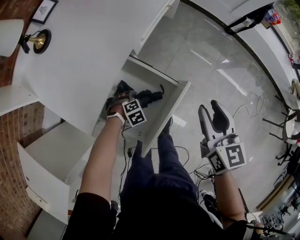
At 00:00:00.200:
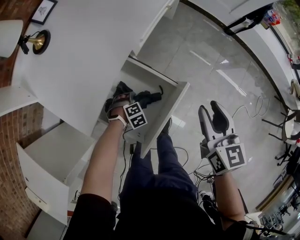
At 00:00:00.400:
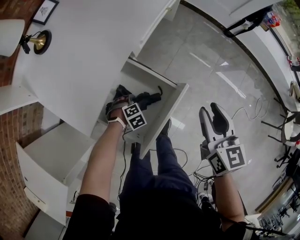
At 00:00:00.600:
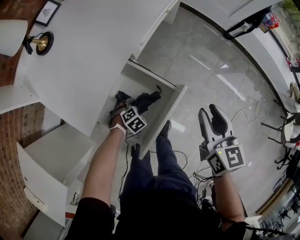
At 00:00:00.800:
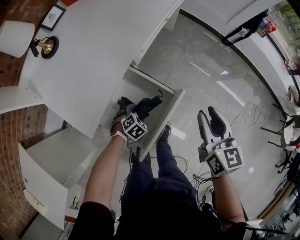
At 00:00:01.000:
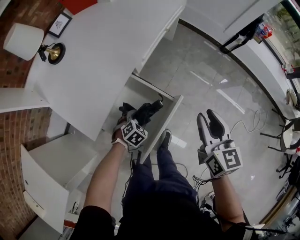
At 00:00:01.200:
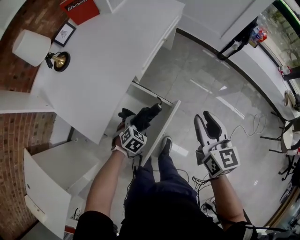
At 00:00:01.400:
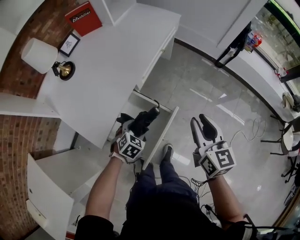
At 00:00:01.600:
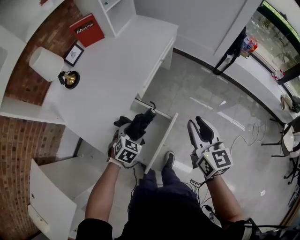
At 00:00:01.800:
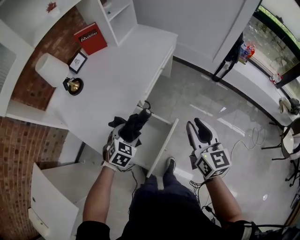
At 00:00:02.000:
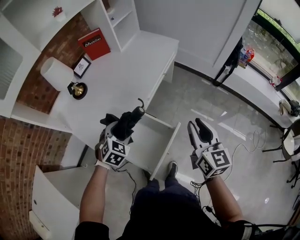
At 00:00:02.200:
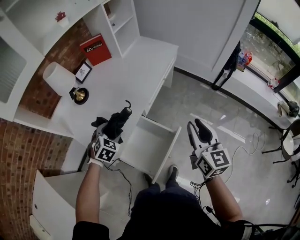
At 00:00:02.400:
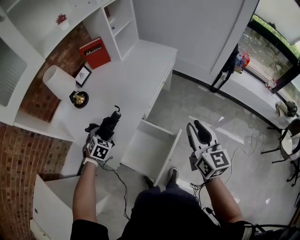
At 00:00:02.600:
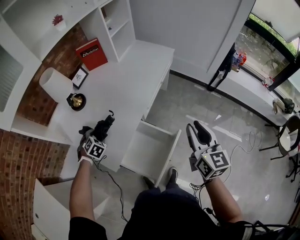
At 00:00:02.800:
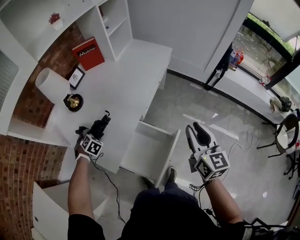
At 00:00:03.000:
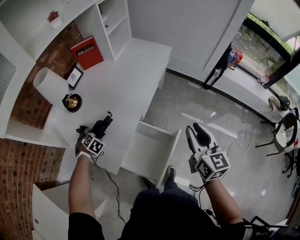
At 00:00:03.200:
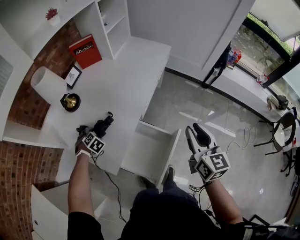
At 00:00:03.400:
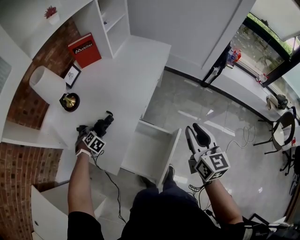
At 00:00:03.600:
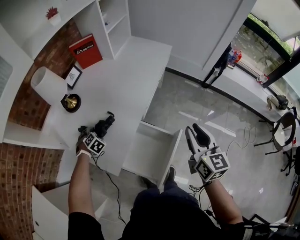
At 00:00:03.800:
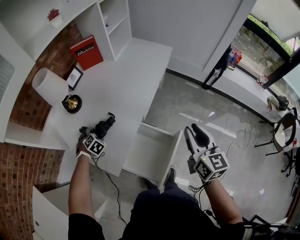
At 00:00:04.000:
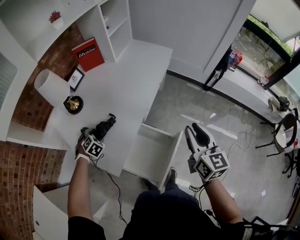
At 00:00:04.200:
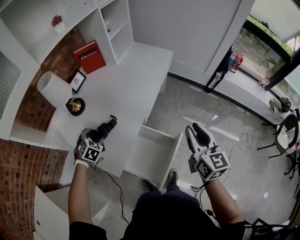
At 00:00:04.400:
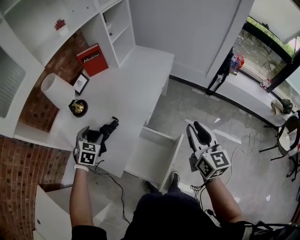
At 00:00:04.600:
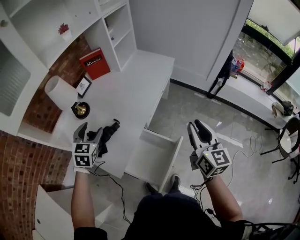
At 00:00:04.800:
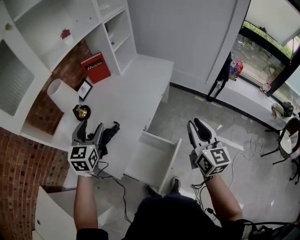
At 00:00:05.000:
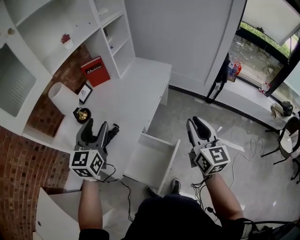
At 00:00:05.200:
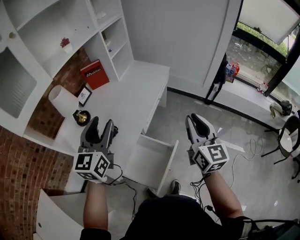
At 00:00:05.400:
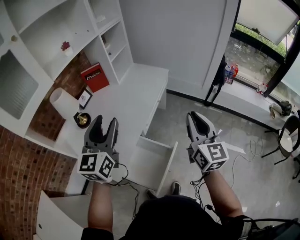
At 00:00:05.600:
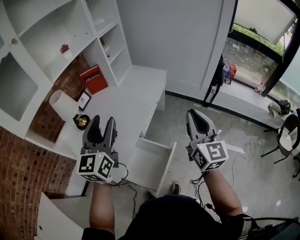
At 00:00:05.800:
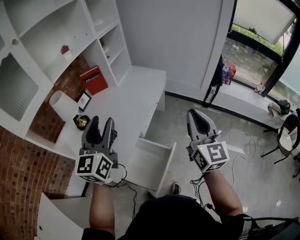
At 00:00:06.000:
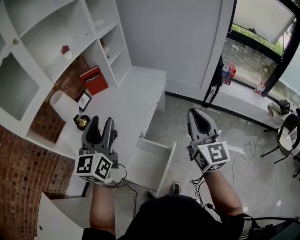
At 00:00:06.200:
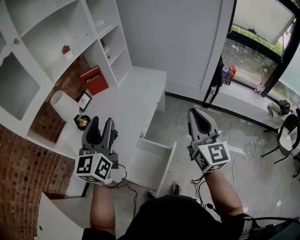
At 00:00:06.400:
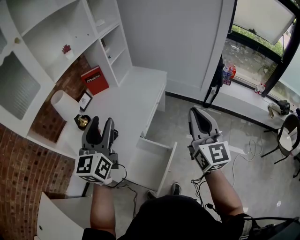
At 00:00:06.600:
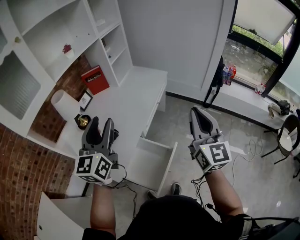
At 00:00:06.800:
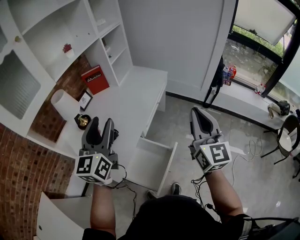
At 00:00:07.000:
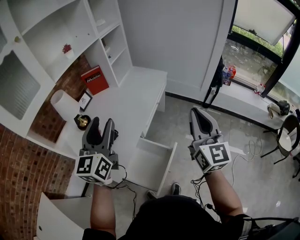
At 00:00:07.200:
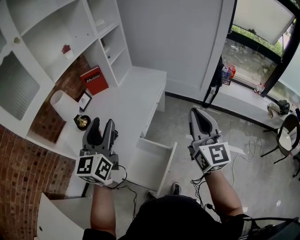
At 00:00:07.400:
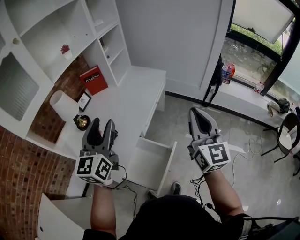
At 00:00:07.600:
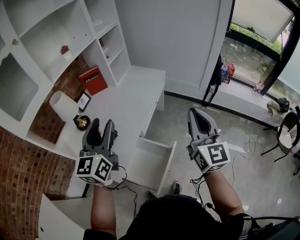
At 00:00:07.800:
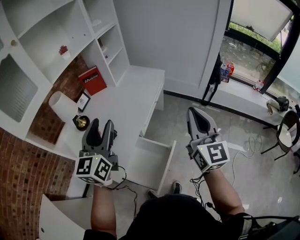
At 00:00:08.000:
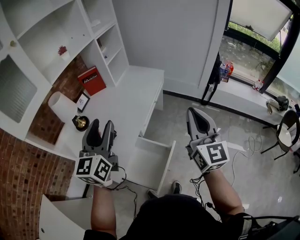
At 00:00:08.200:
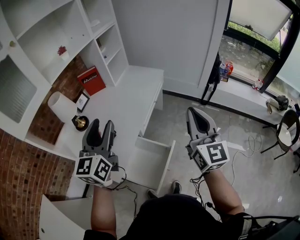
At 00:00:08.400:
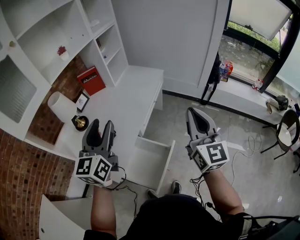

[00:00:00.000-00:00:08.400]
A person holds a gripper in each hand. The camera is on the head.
00:00:00.000 to 00:00:01.400: The right gripper shifts roughly 10 cm upward. Meanwhile the left gripper heads upward, covering approximately 20 cm, and swivels some 40 degrees.
00:00:01.400 to 00:00:02.800: The right gripper heads upward and to the left, covering roughly 10 cm. The left gripper travels to the left and forward by about 35 cm, and turns by some 20 degrees.
00:00:02.800 to 00:00:04.200: The left gripper is displaced upward by roughly 5 cm.
00:00:04.200 to 00:00:05.600: The left gripper heads upward and to the right, covering roughly 40 cm, and points its fingers about 60 degrees further upward. Meanwhile the right gripper heads upward, covering approximately 15 cm.
00:00:05.600 to 00:00:08.400: The grippers stay close to where they were, moving slightly.

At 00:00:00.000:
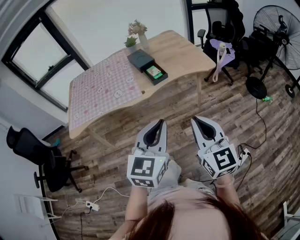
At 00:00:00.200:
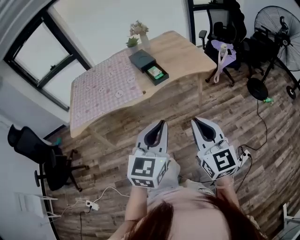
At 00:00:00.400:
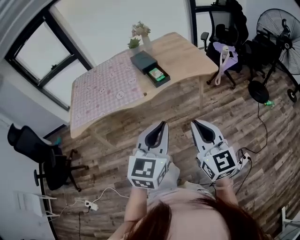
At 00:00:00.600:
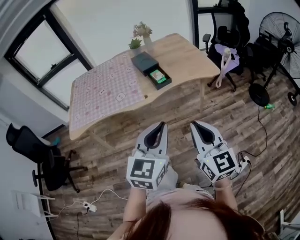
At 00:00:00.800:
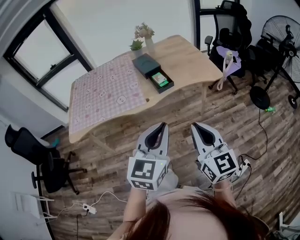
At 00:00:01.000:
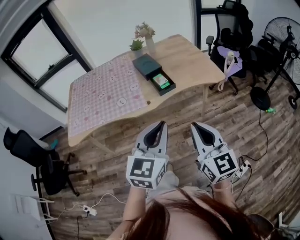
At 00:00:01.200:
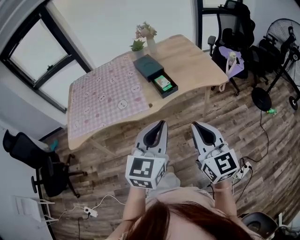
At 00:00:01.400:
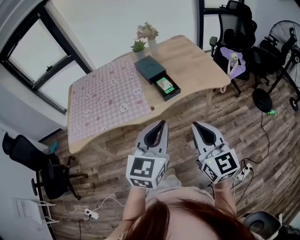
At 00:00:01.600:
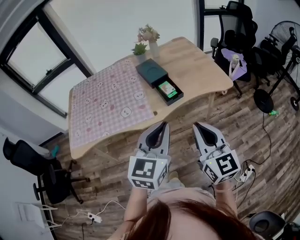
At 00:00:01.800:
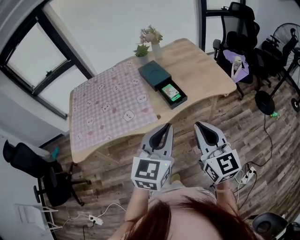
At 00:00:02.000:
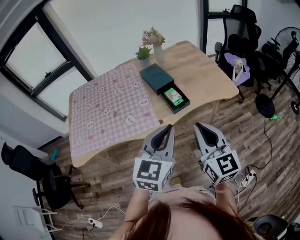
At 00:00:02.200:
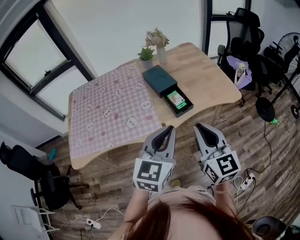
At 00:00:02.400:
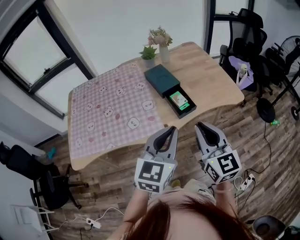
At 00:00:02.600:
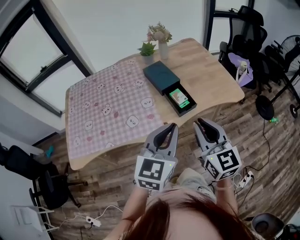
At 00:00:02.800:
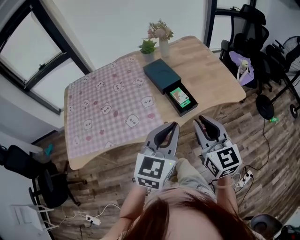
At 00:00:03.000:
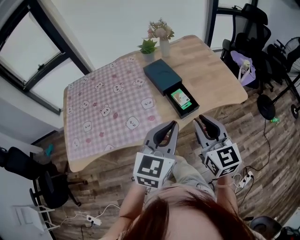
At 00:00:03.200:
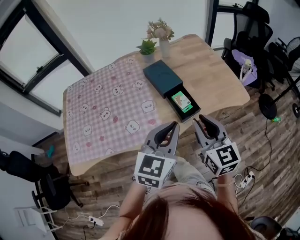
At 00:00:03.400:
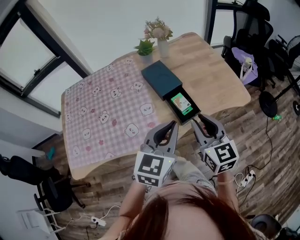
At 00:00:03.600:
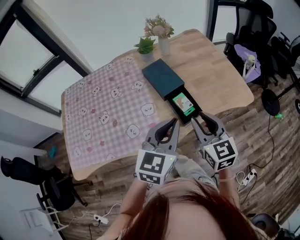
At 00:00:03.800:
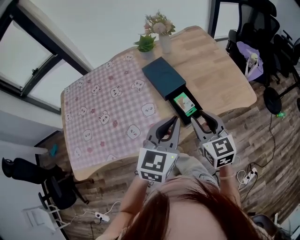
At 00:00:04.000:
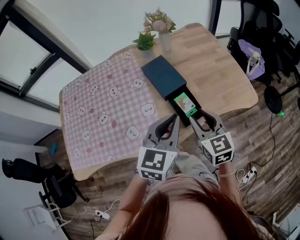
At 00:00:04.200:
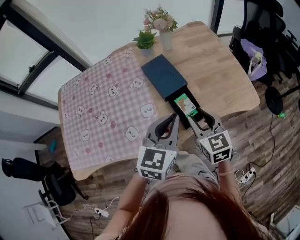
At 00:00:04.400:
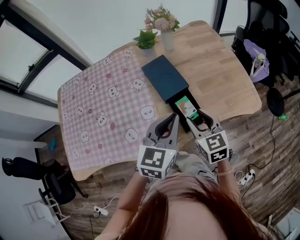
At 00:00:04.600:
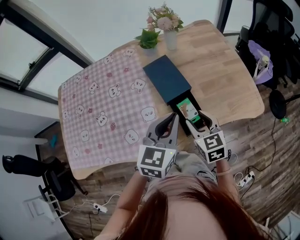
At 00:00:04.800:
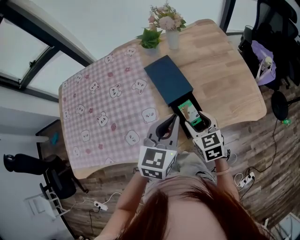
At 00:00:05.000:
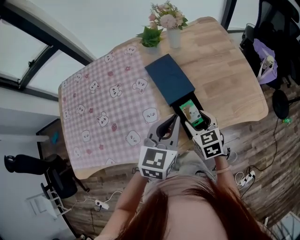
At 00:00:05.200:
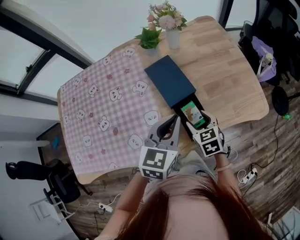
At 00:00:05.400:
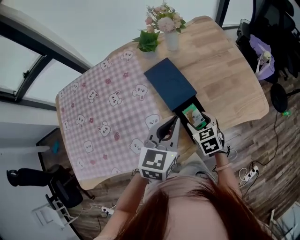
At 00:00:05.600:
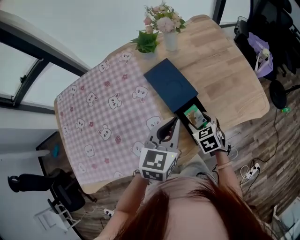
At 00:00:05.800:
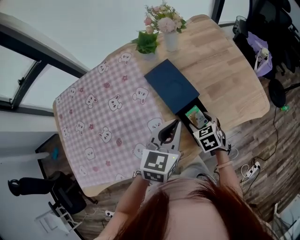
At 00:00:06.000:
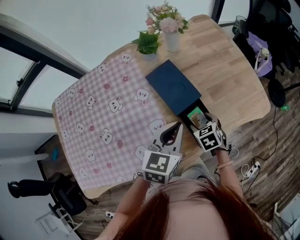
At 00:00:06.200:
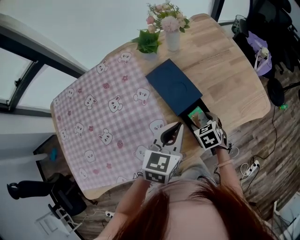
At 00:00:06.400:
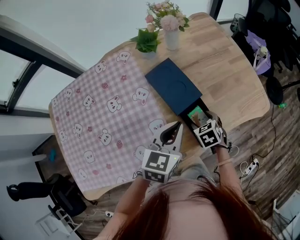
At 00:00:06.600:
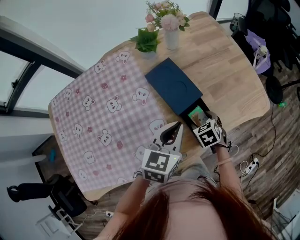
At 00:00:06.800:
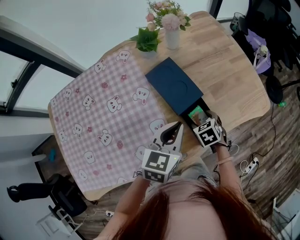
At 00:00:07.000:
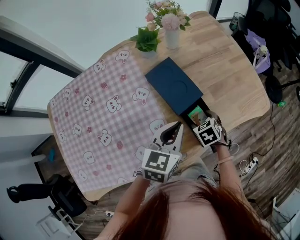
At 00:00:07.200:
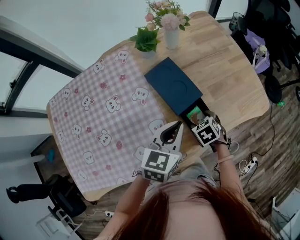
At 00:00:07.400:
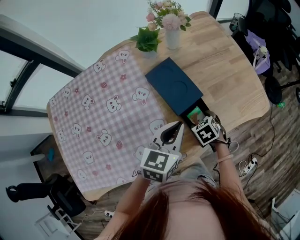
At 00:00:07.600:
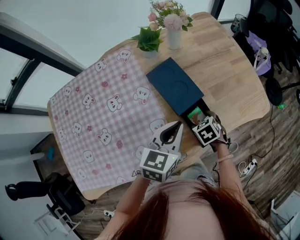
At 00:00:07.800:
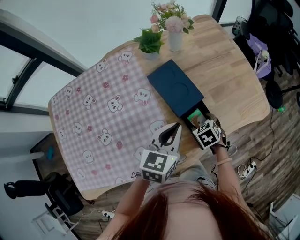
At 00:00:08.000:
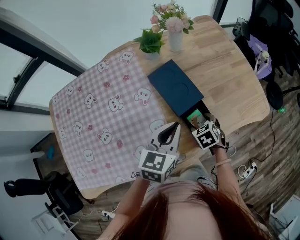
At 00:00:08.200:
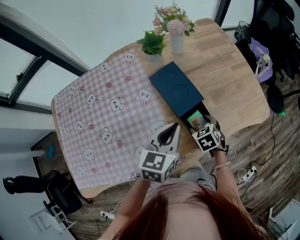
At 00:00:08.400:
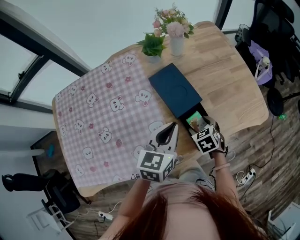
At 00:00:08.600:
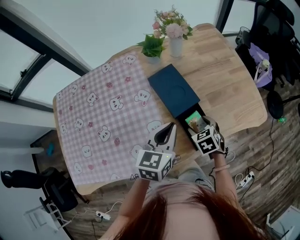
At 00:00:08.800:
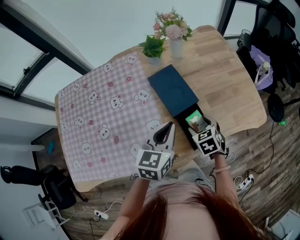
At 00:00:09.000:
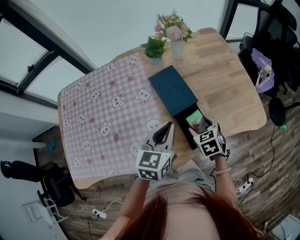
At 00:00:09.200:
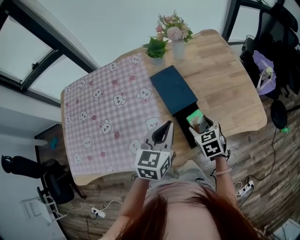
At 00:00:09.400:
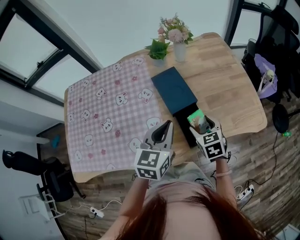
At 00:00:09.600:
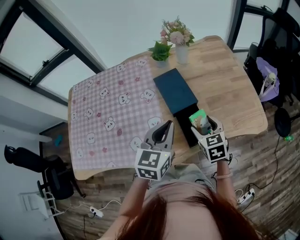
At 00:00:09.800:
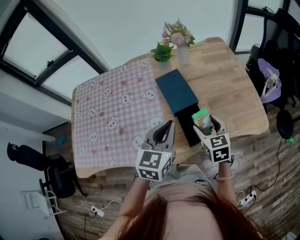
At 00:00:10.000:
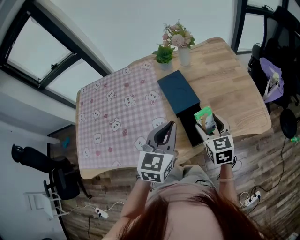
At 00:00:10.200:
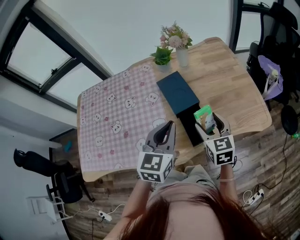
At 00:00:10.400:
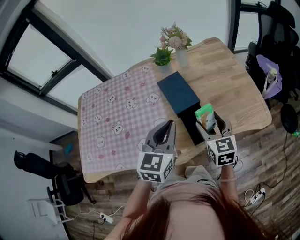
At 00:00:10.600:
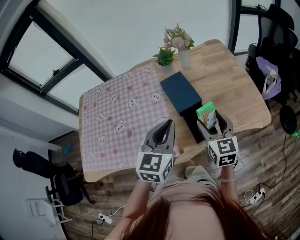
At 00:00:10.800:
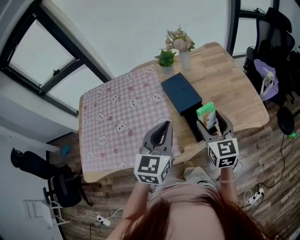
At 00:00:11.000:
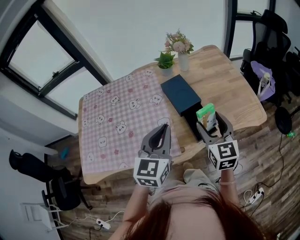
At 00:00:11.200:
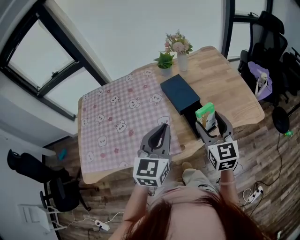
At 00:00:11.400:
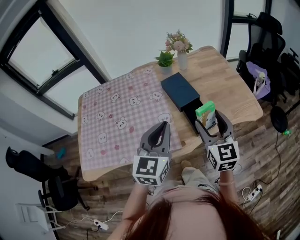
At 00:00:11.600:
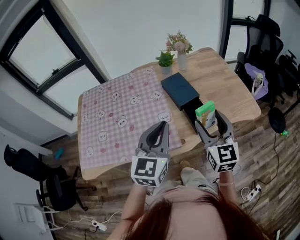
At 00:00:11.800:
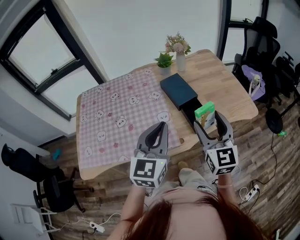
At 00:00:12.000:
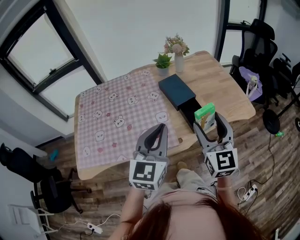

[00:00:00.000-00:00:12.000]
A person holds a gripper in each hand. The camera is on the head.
00:00:00.000 to 00:00:01.600: The right gripper shifts roughly 20 cm forward and to the left. The left gripper is displaced forward by about 20 cm.
00:00:01.600 to 00:00:03.000: Both grippers move forward and to the left, some 20 cm.
00:00:03.000 to 00:00:04.400: The right gripper goes about 20 cm forward and downward. The left gripper heads forward, covering some 20 cm.
00:00:04.400 to 00:00:06.000: The left gripper goes some 10 cm forward and downward. Meanwhile the right gripper heads downward and forward, covering about 20 cm, angles its fingers downward, by approximately 30 degrees, and opens.
00:00:06.000 to 00:00:07.600: There are only small adjustments of the grippers.
00:00:07.600 to 00:00:09.000: The right gripper travels upward by roughly 10 cm.
00:00:09.000 to 00:00:10.400: The left gripper heads upward and backward, covering about 10 cm, while the right gripper heads upward, covering some 15 cm, and tips its fingers upward by about 30 degrees.
00:00:10.400 to 00:00:12.000: The right gripper goes some 20 cm backward and upward, and turns by approximately 20 degrees, while the left gripper goes some 20 cm backward, to the left and upward.

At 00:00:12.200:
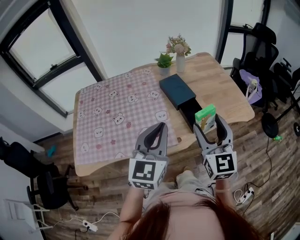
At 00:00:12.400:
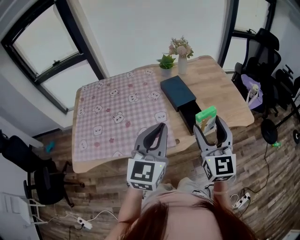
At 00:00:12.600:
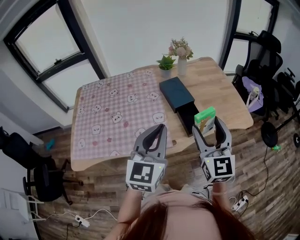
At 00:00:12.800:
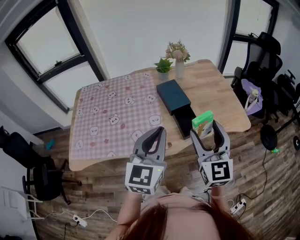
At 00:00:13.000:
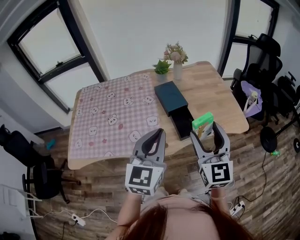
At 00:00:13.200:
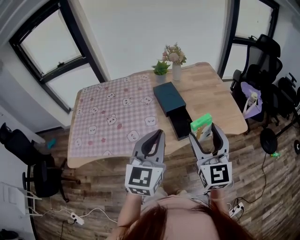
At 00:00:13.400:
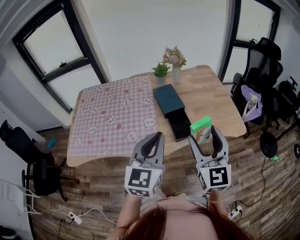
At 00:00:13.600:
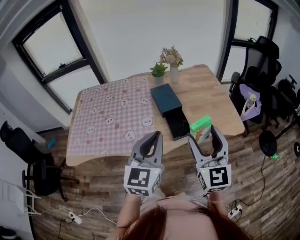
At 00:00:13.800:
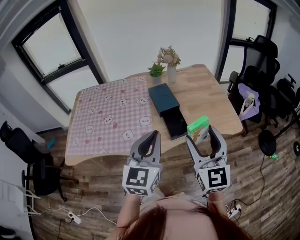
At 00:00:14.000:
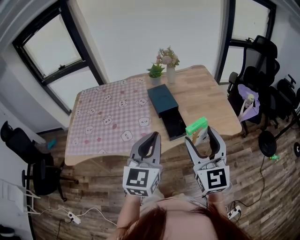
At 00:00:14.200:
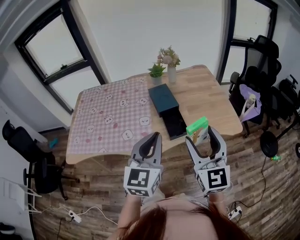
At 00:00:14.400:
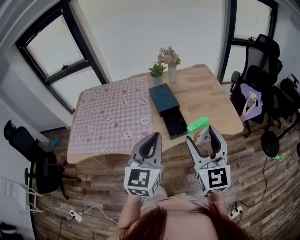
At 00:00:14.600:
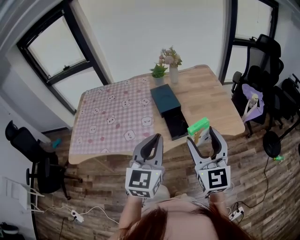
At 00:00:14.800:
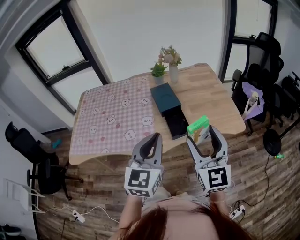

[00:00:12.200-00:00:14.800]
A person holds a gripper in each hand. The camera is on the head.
00:00:12.200 to 00:00:13.400: Both grippers travel together to the right, approximately 10 cm.
00:00:13.400 to 00:00:14.800: The grippers move only a little.
